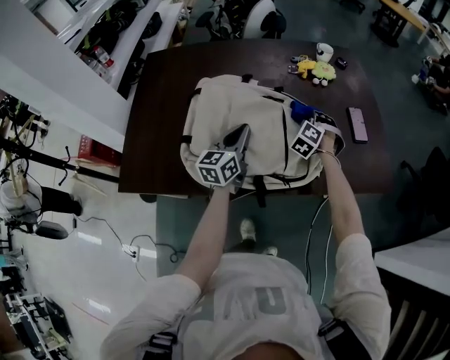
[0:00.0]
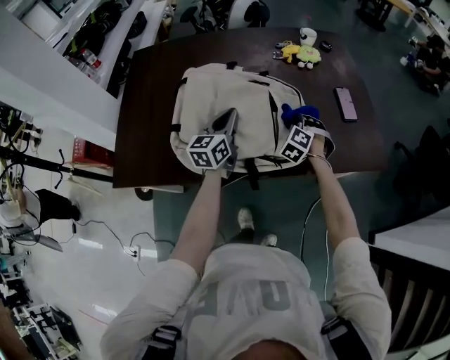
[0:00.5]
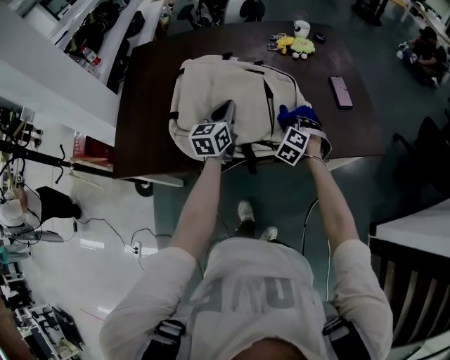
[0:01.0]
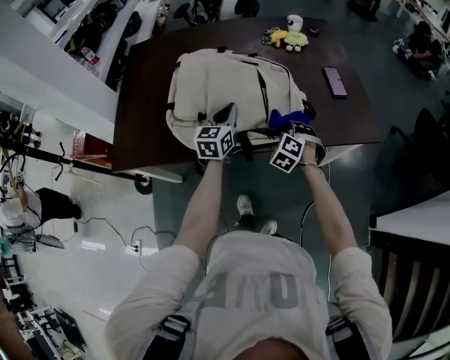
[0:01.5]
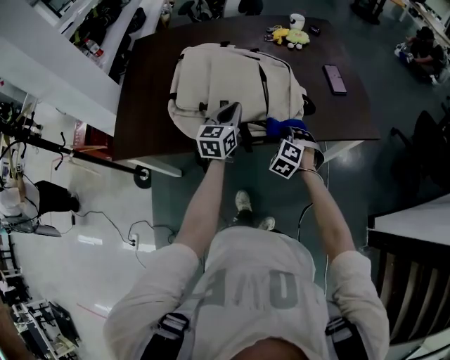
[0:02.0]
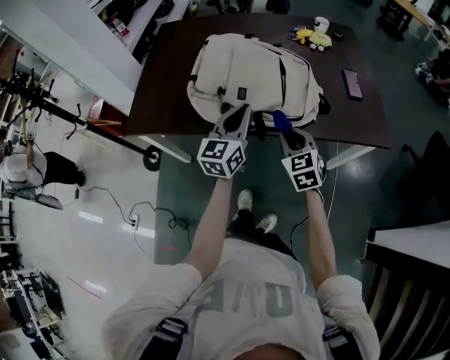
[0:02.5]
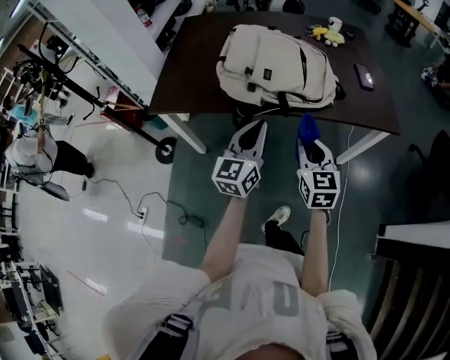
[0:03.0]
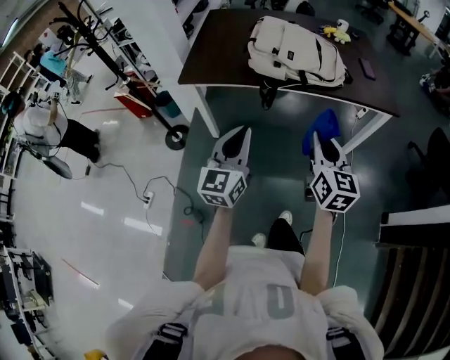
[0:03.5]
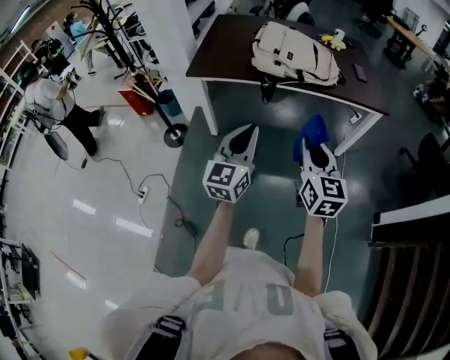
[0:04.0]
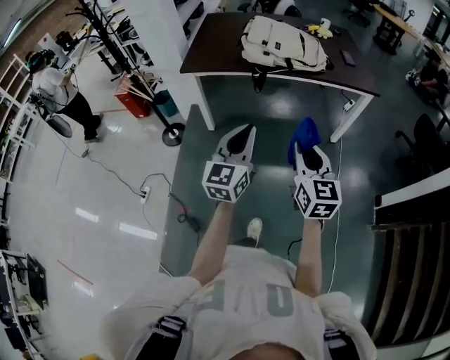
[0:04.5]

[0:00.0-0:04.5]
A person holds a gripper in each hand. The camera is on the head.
0:00.0 to 0:02.0: The right gripper is displaced backward by approximately 25 cm. Meanwhile the left gripper is displaced backward and to the right by about 10 cm.
0:02.0 to 0:04.5: Both grippers are carried backward, about 60 cm. The right gripper shifts about 25 cm upward, and angles its fingers upward, by approximately 40 degrees.

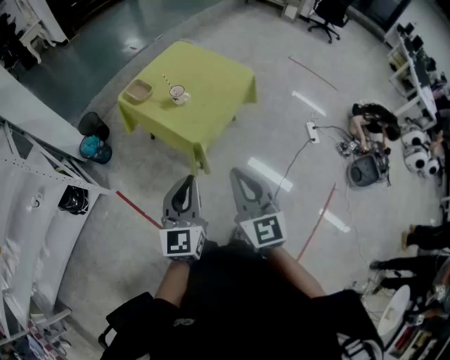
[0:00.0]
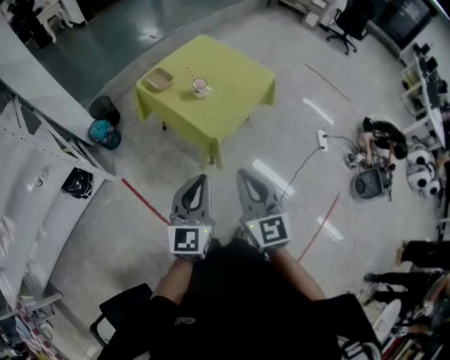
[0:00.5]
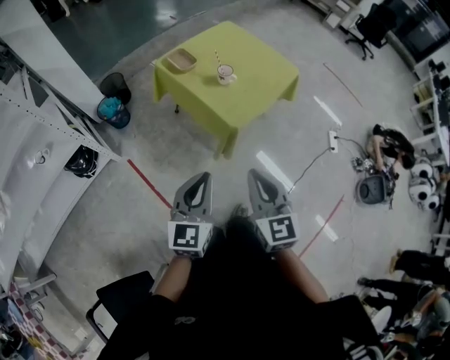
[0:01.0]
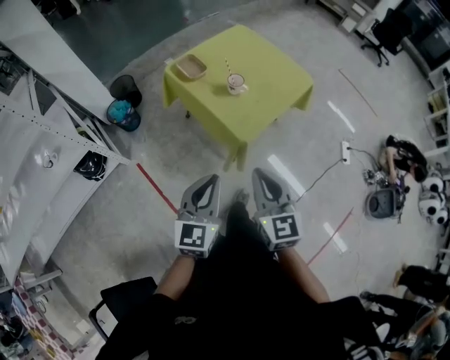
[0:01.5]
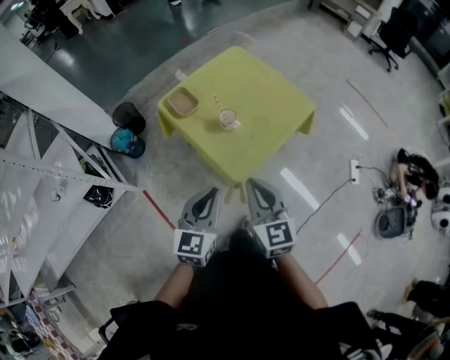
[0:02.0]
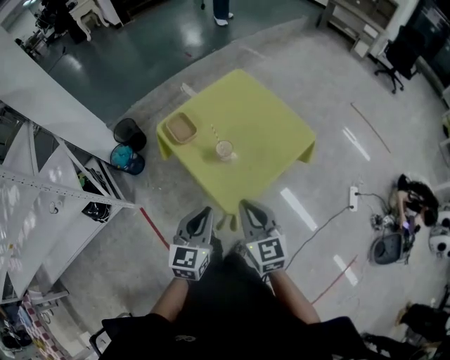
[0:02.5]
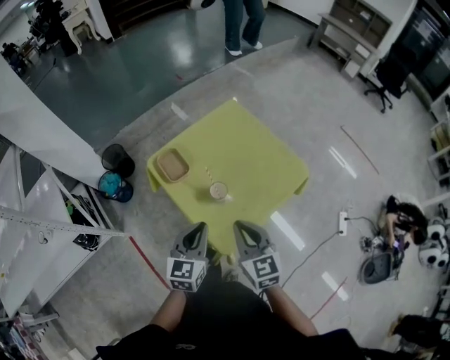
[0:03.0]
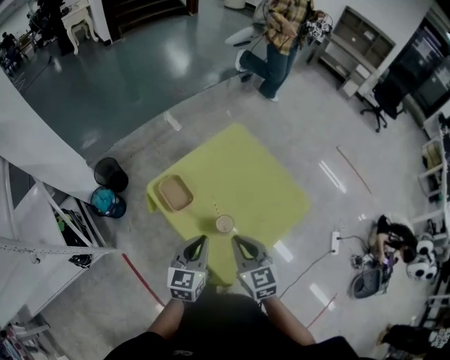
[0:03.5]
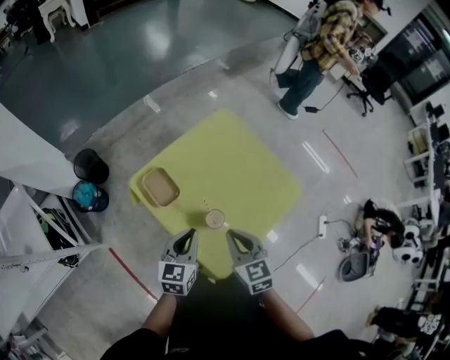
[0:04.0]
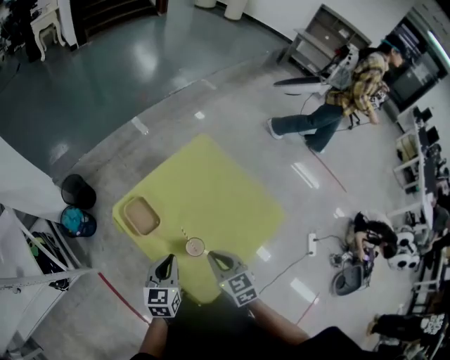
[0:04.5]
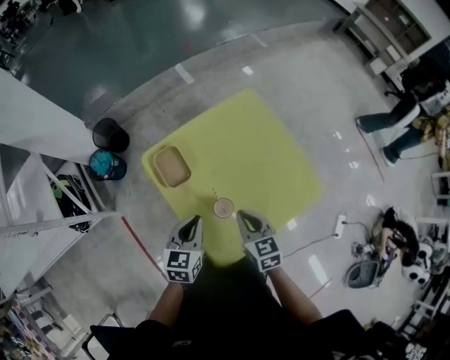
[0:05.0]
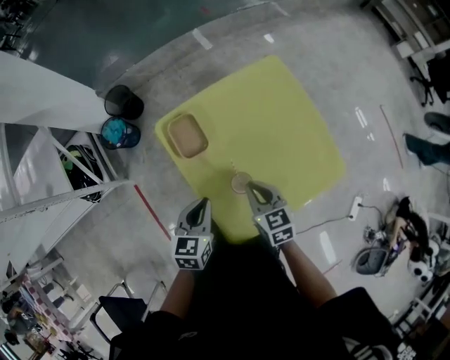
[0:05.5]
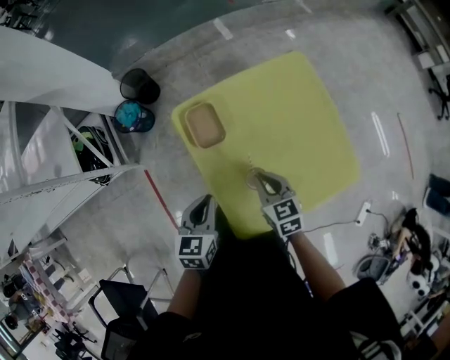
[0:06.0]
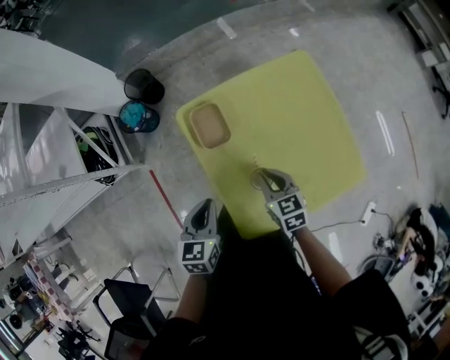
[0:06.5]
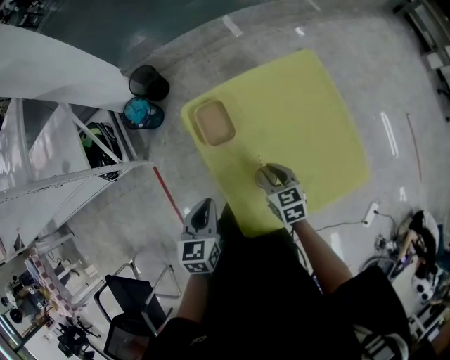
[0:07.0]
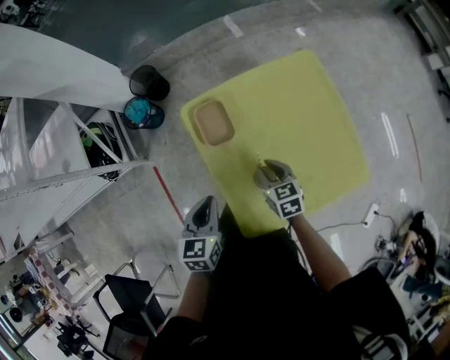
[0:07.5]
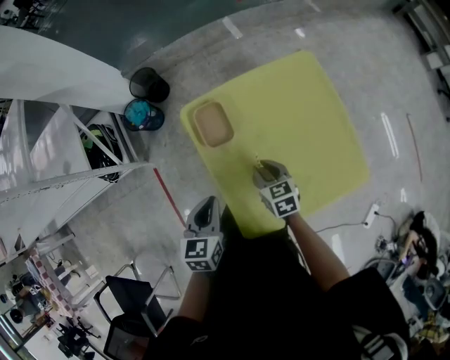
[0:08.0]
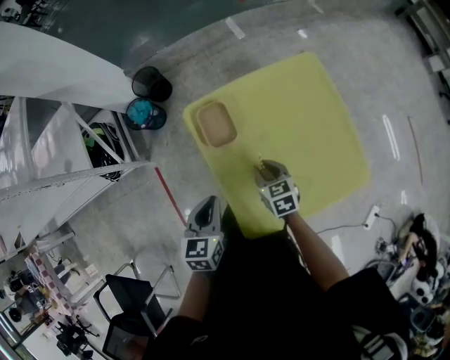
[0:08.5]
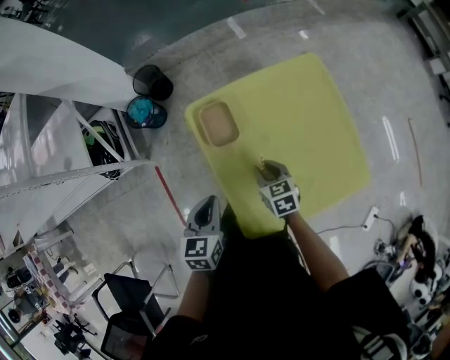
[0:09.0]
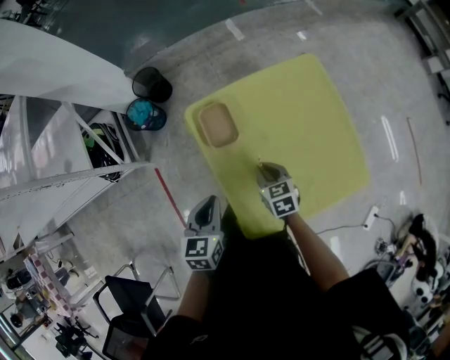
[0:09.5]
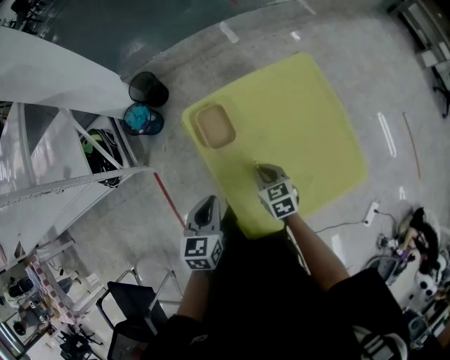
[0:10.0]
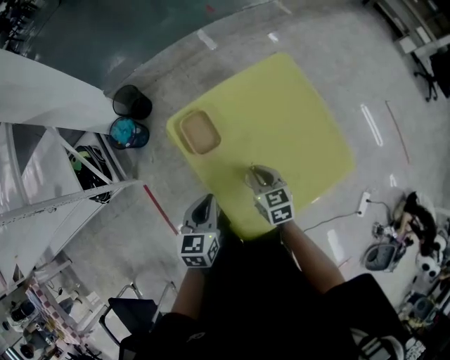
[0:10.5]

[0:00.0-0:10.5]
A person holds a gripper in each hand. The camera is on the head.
0:00.0 to 0:02.0: The grippers both shift forward by about 25 cm.
0:02.0 to 0:04.0: Both grippers move forward, approximately 35 cm. The right gripper rotates about 20 degrees.
0:04.0 to 0:06.5: The right gripper goes some 15 cm downward, and changes its angle by roughly 20 degrees, while the left gripper changes place by roughly 10 cm, and swivels approximately 30 degrees.
0:06.5 to 0:08.5: The right gripper changes place by approximately 5 cm.
0:08.5 to 0:10.5: The right gripper shifts by some 5 cm.

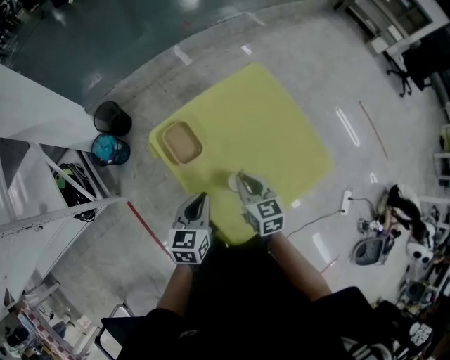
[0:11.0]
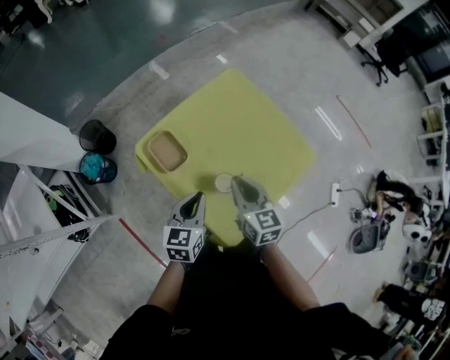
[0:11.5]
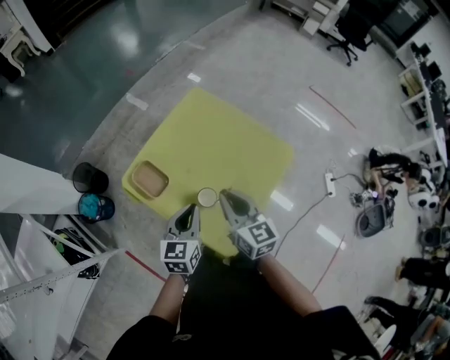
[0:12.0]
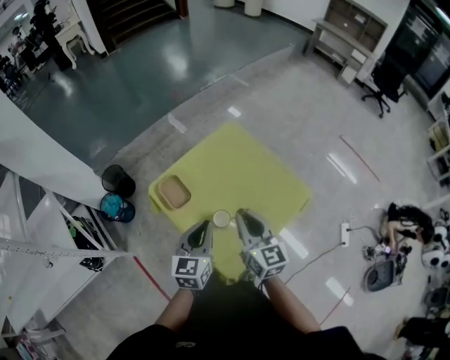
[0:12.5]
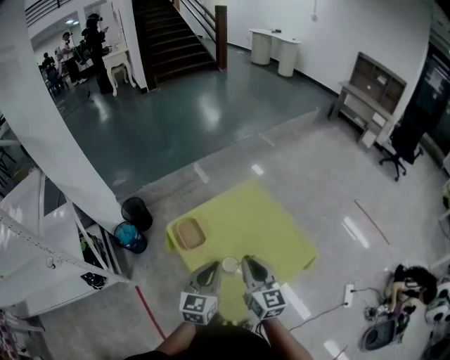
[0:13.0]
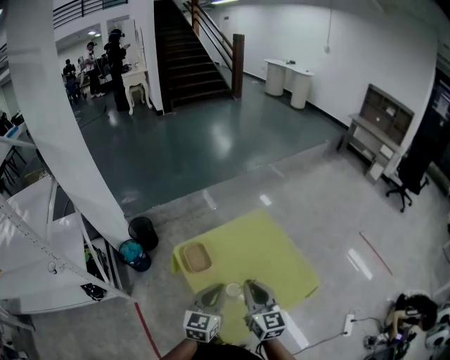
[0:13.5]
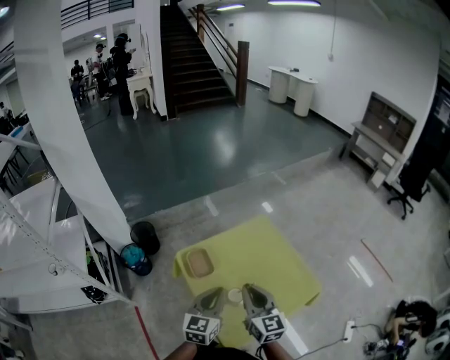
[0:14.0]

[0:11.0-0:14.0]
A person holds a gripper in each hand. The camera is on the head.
0:11.0 to 0:12.5: Both grippers travel together upward and to the right, about 20 cm. The right gripper rotates approximately 30 degrees.
0:12.5 to 0:14.0: The left gripper moves about 5 cm, while the right gripper heads to the left, covering about 5 cm.

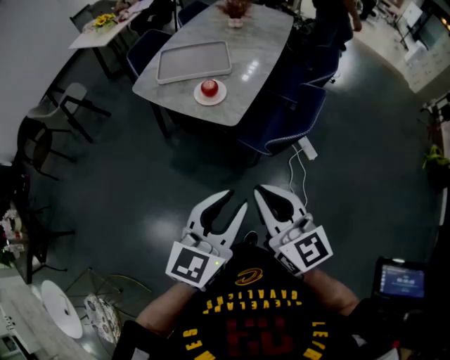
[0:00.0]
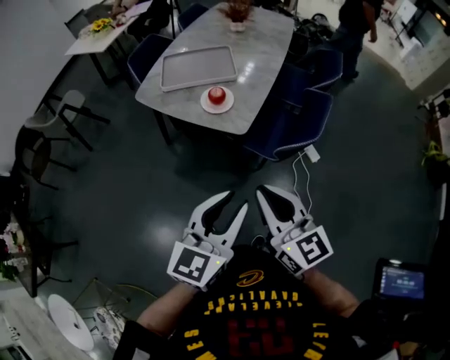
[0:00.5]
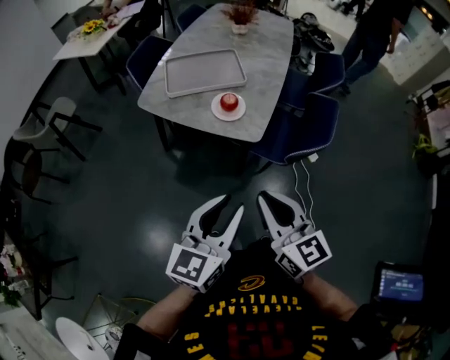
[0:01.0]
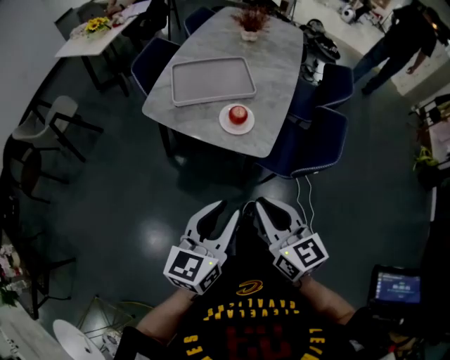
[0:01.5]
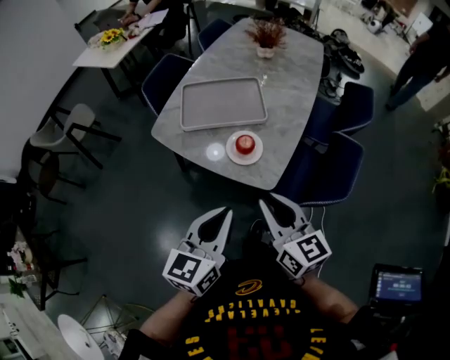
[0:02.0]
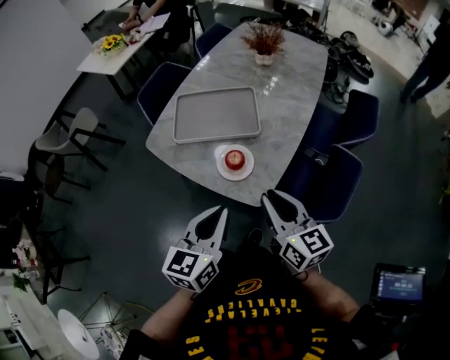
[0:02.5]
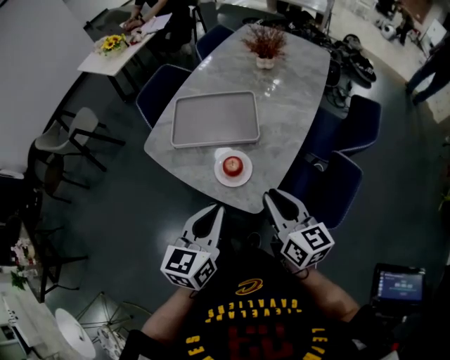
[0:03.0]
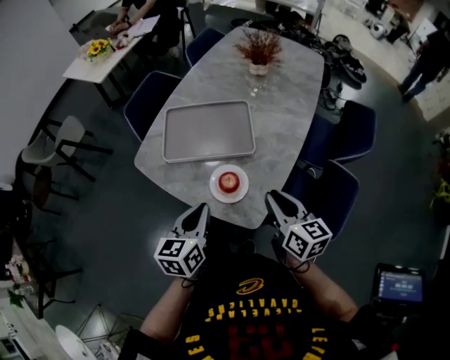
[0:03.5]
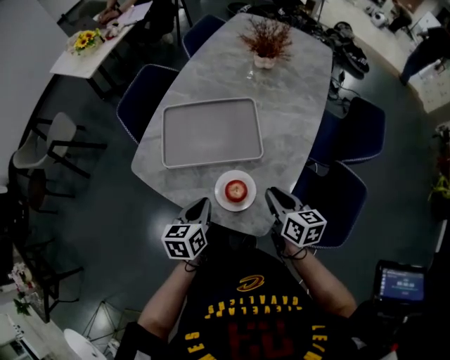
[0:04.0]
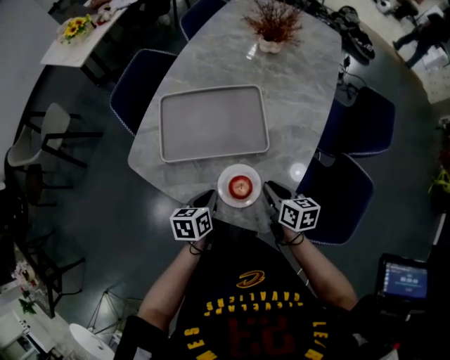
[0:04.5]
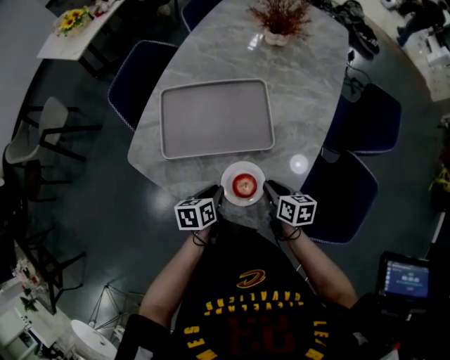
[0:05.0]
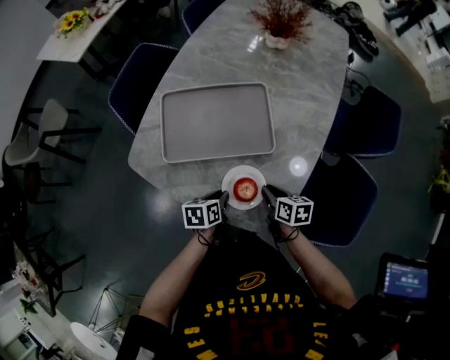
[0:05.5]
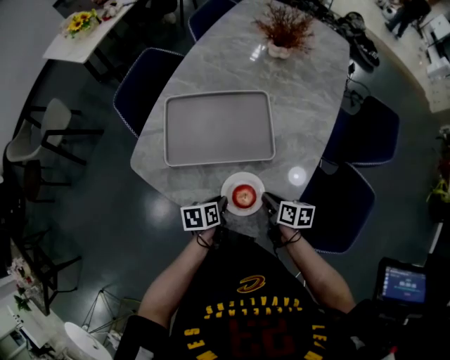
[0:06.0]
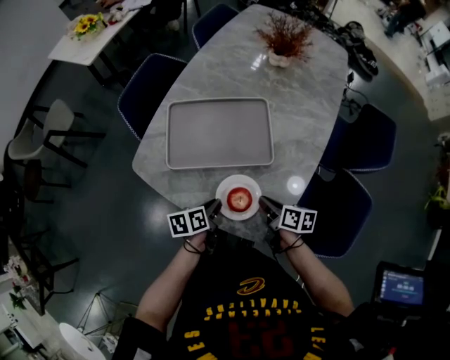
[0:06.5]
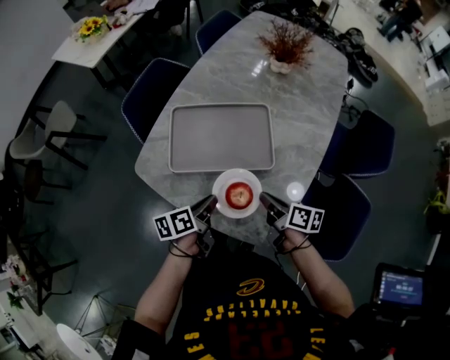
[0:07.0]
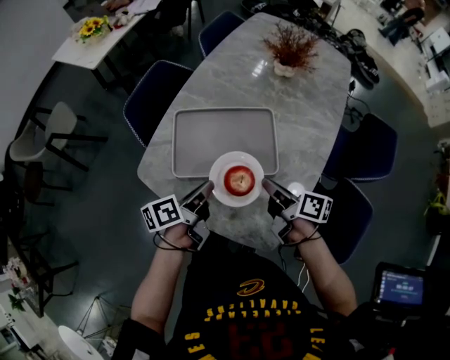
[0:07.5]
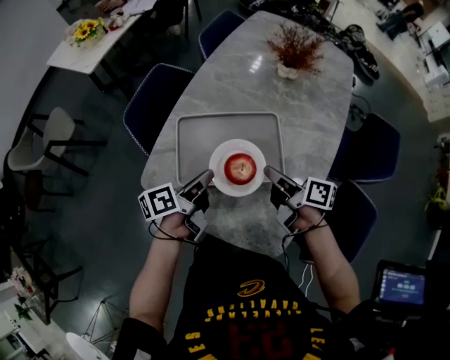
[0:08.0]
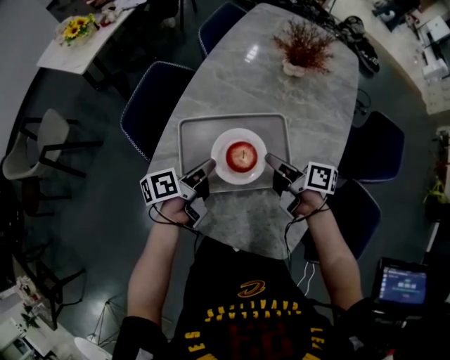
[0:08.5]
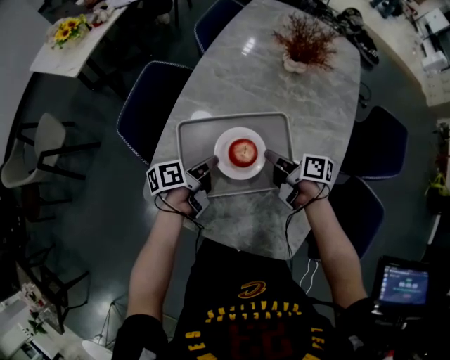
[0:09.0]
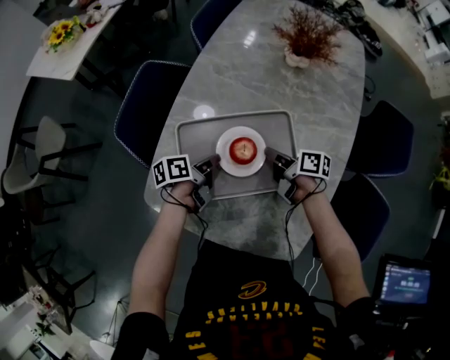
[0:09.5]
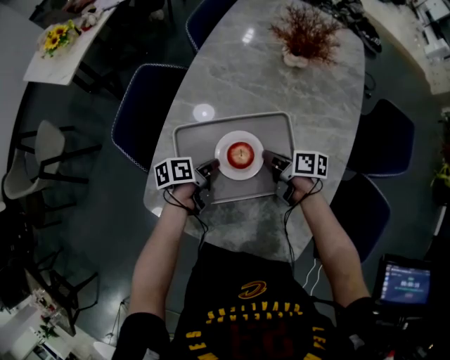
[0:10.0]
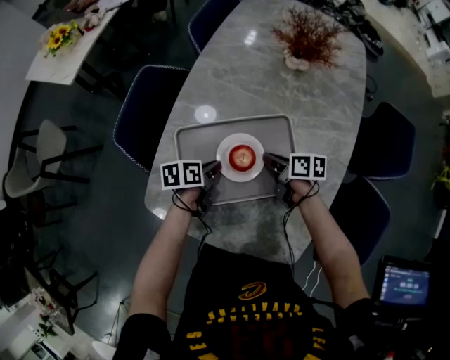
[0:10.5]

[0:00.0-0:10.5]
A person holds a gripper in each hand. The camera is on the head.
0:00.0 to 0:02.0: Both grippers travel together forward and to the left, some 30 cm. The left gripper closes its fingers.
0:02.0 to 0:04.0: Both grippers move forward and downward, some 30 cm. The left gripper changes its angle by about 30 degrees; the right gripper changes its angle by roughly 20 degrees.
0:04.0 to 0:06.5: The two grippers go some 10 cm downward. The left gripper rotates approximately 30 degrees; the right gripper turns by approximately 30 degrees.
0:06.5 to 0:08.5: The two grippers go roughly 20 cm forward and upward. The left gripper changes its angle by some 30 degrees.
0:08.5 to 0:10.5: The grippers both shift downward by roughly 10 cm. The left gripper swivels approximately 30 degrees.
